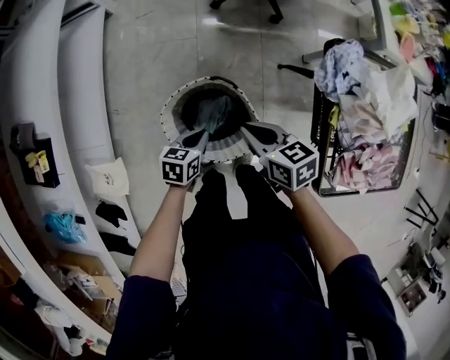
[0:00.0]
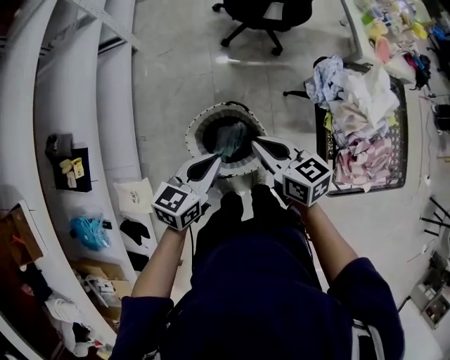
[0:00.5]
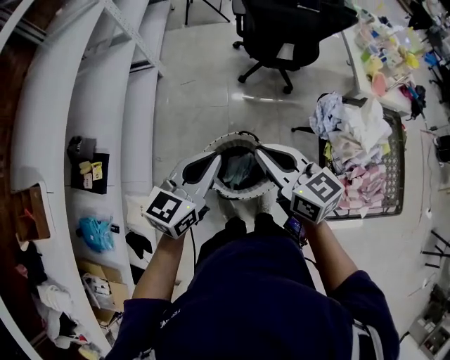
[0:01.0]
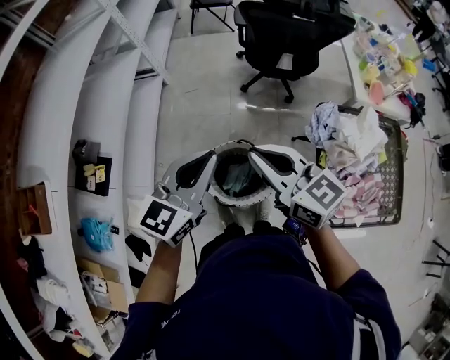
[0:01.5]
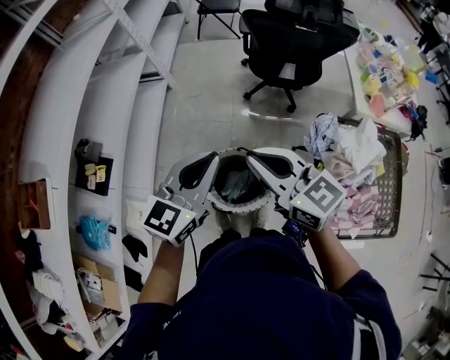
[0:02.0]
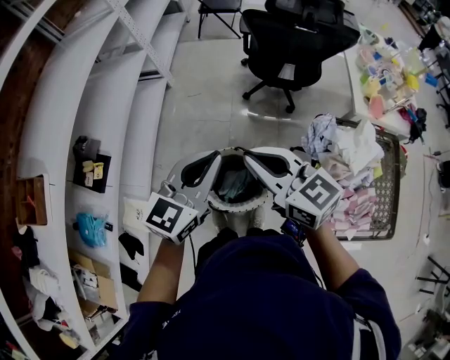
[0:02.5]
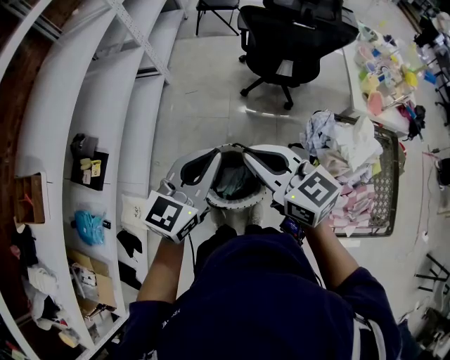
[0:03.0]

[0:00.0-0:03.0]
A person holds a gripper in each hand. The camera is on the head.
0:00.0 to 0:01.5: Both grippers travel together upward, some 40 cm. The right gripper tips its fingers upward by about 30 degrees; the left gripper angles its fingers upward, by approximately 40 degrees.
0:01.5 to 0:03.0: The grippers move only a little.

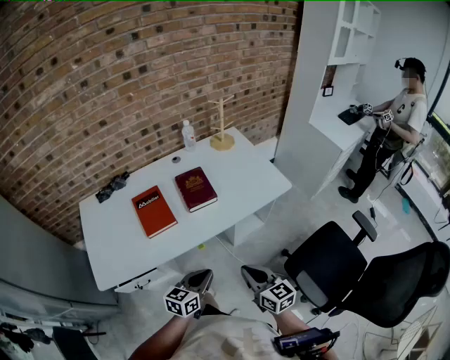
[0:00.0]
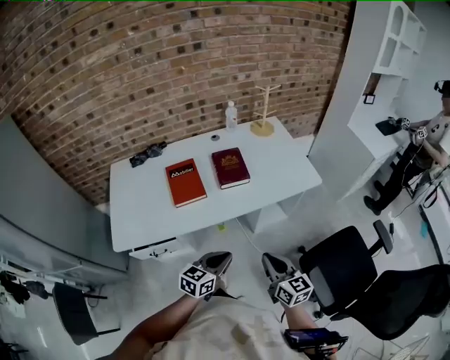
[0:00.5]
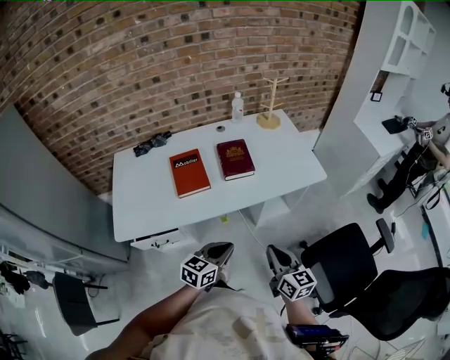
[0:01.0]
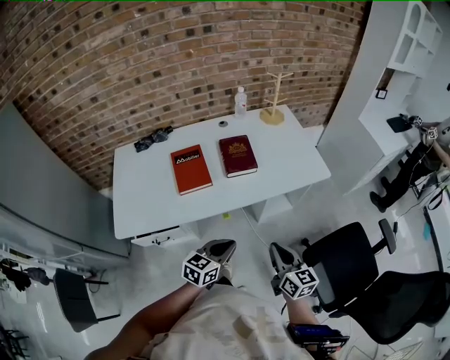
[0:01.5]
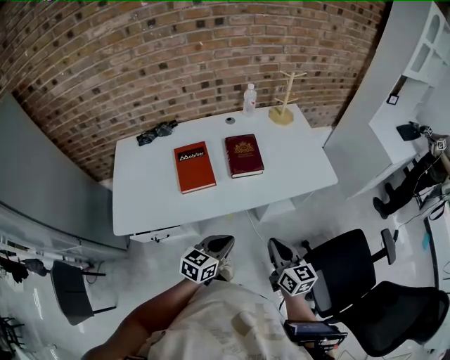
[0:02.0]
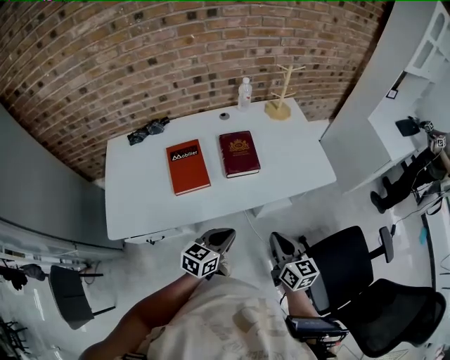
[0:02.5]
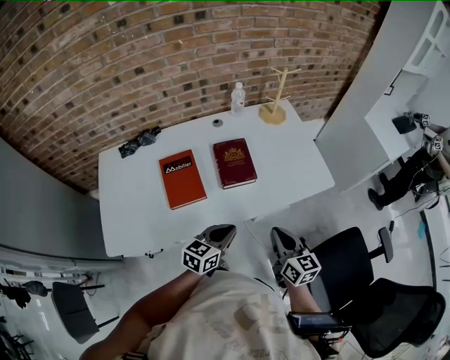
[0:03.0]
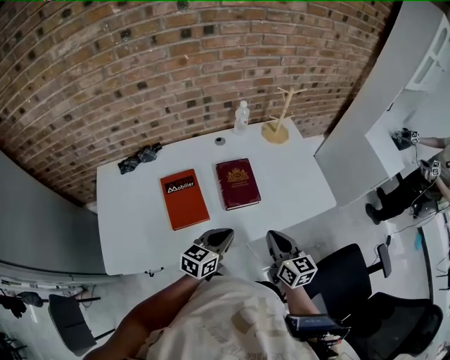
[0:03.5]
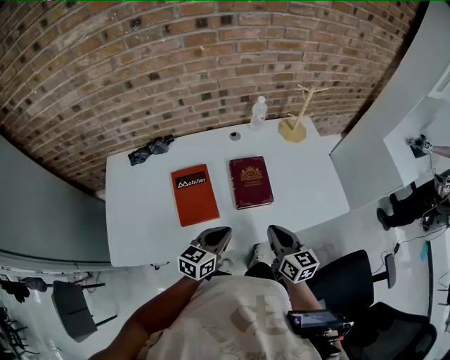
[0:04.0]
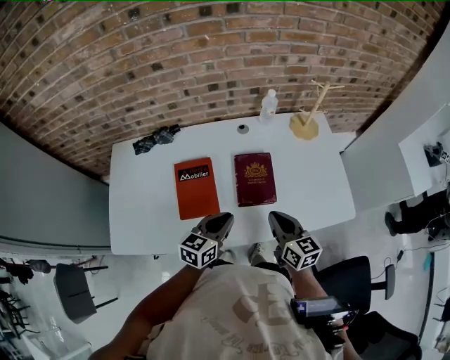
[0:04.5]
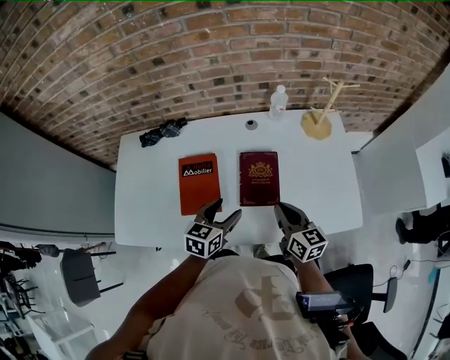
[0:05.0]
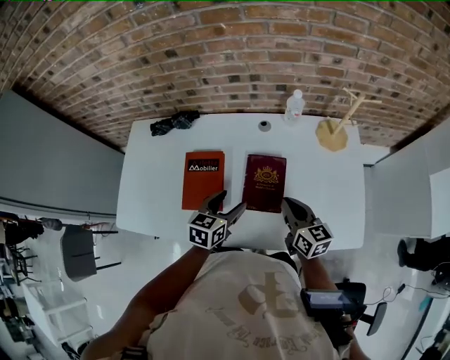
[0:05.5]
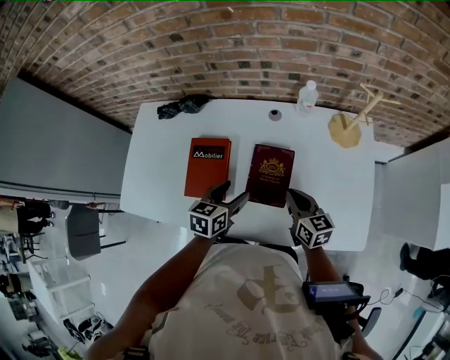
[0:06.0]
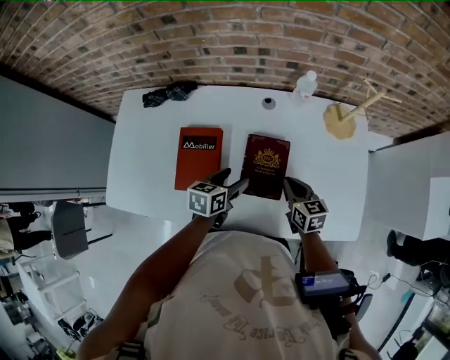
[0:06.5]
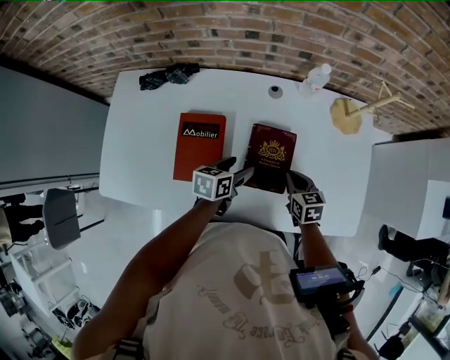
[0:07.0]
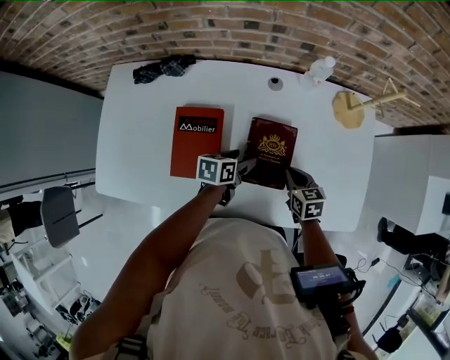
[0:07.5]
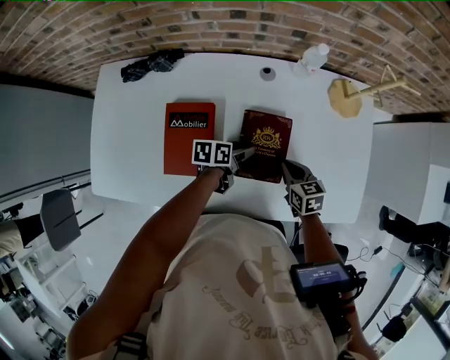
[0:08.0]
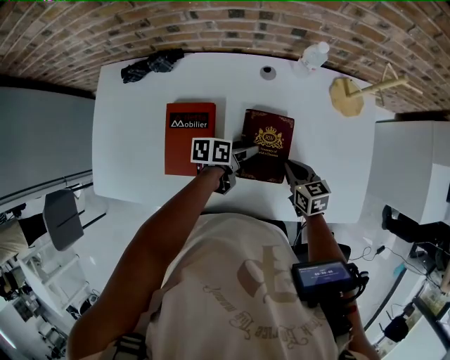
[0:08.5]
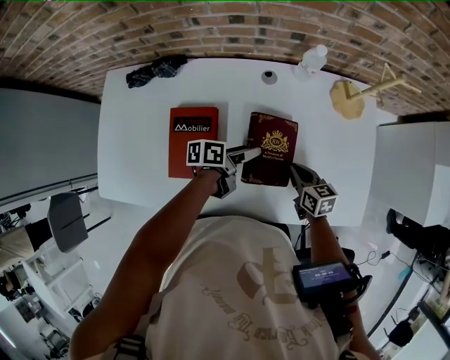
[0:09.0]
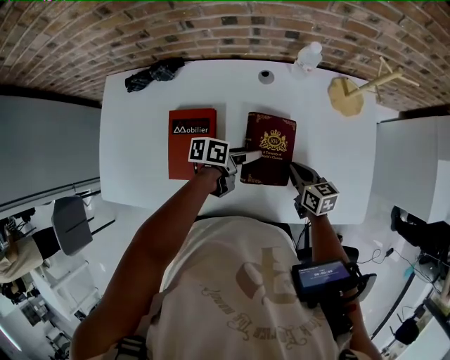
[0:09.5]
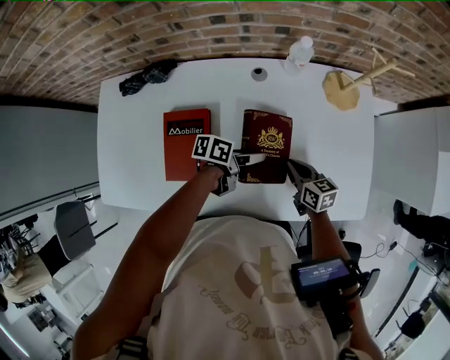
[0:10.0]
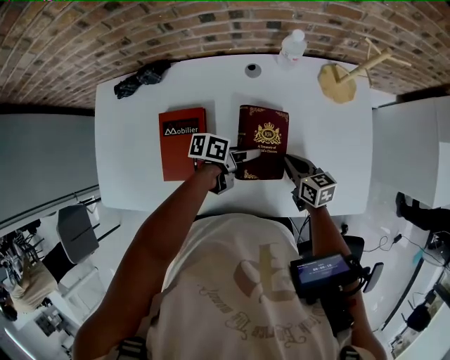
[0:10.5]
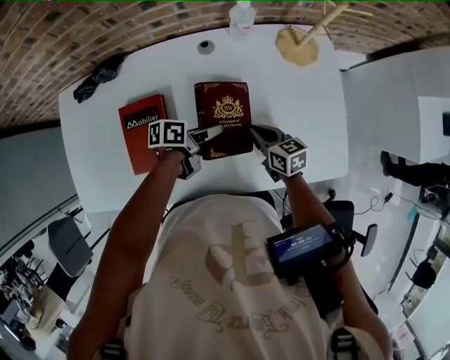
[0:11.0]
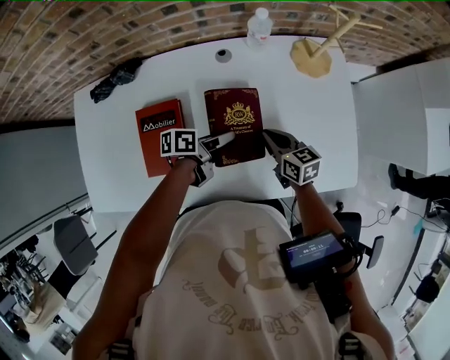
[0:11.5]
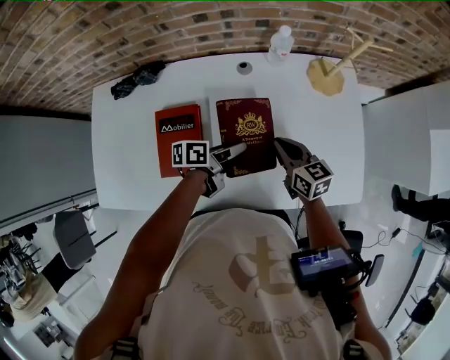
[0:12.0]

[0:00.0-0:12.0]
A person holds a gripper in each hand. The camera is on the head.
0:00.0 to 0:02.0: The grippers make only small movements.
0:02.0 to 0:04.0: Both grippers travel together forward, approximately 20 cm.
0:04.0 to 0:06.0: Both grippers move forward, roughly 15 cm. The right gripper turns by about 20 degrees. Meanwhile the left gripper changes its angle by roughly 30 degrees, and opens up.
0:06.0 to 0:08.0: The right gripper travels downward by some 10 cm, and swivels approximately 20 degrees; the left gripper heads downward and forward, covering some 15 cm, and rotates roughly 40 degrees.
0:08.0 to 0:10.0: The left gripper heads to the right, covering some 5 cm.
0:10.0 to 0:12.0: The right gripper goes about 10 cm upward.

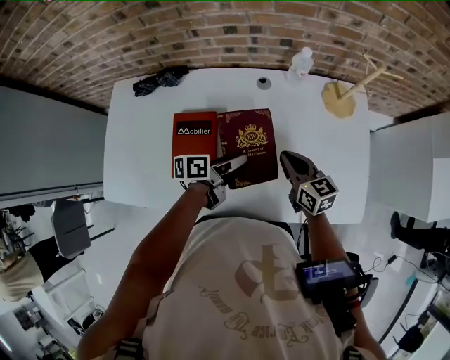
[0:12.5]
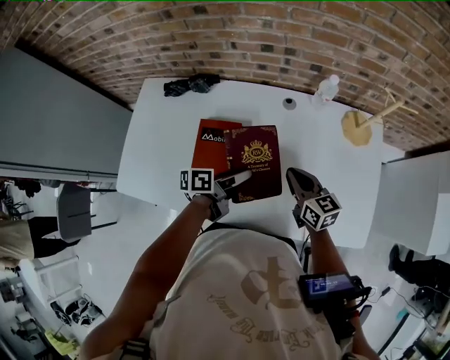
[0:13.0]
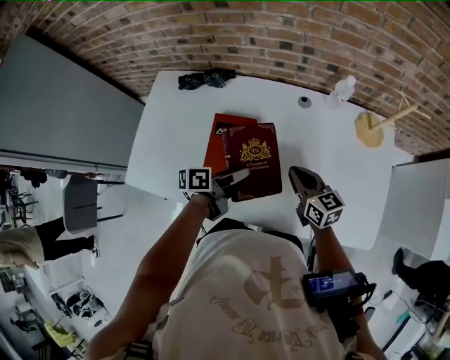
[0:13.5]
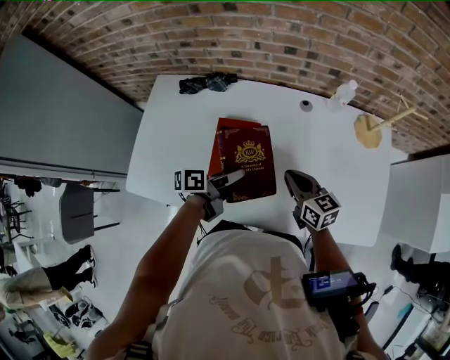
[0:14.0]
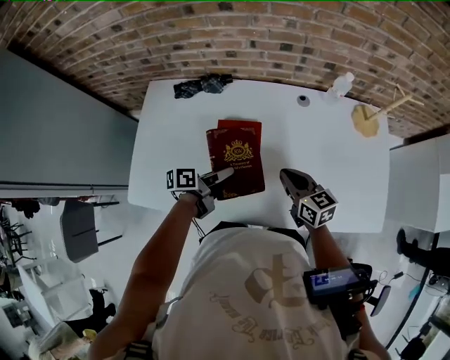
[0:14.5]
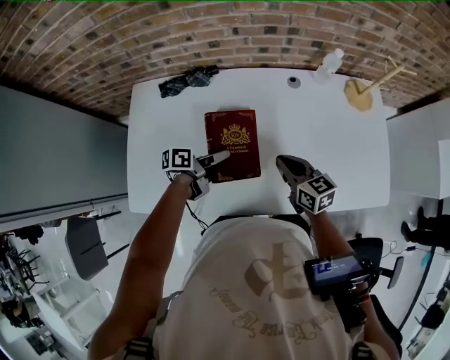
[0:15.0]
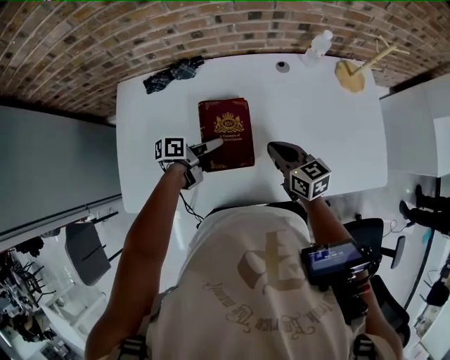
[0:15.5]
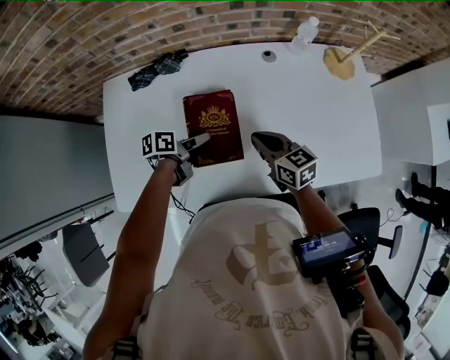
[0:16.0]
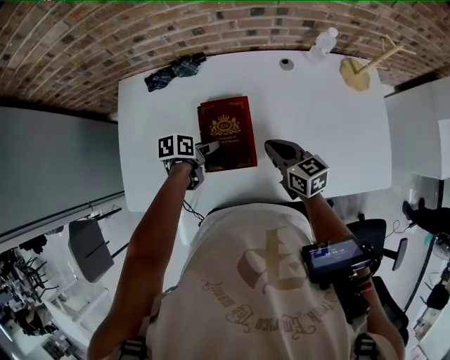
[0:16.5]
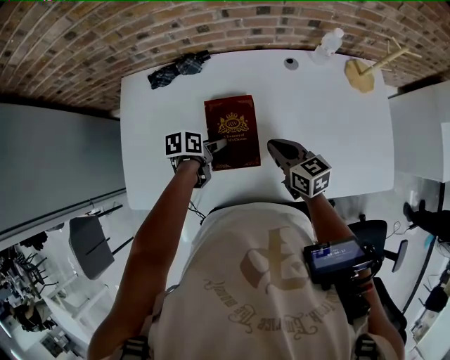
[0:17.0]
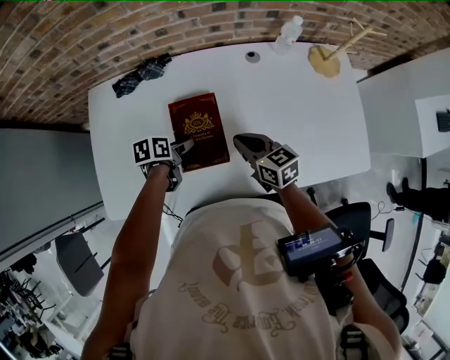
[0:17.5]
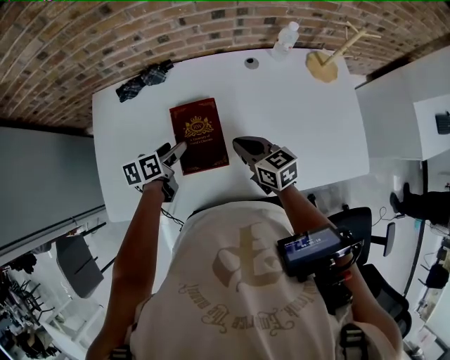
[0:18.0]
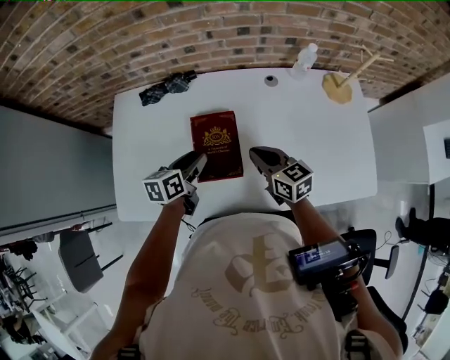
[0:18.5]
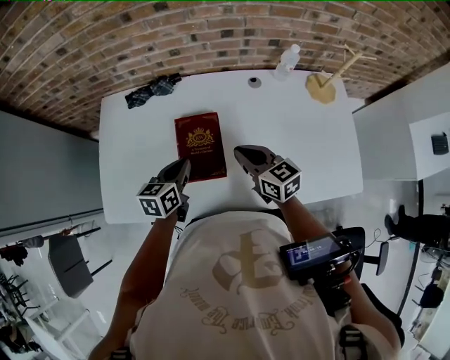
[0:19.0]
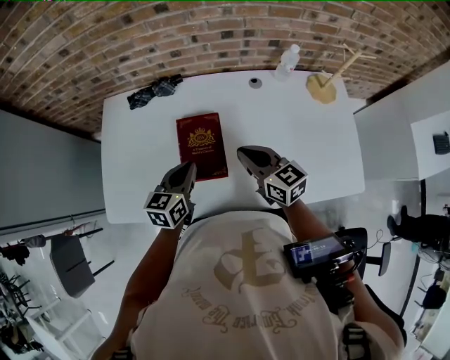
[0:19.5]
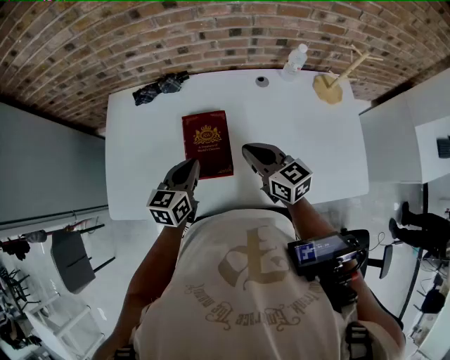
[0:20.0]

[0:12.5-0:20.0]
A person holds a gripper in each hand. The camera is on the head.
0:12.5 to 0:14.5: The grippers both shift to the left by approximately 20 cm.
0:14.5 to 0:16.5: The left gripper is displaced downward and to the left by some 10 cm, and turns by some 30 degrees.
0:16.5 to 0:18.0: The left gripper heads upward, covering about 5 cm.
0:18.0 to 0:20.0: The right gripper is displaced upward by approximately 5 cm. The left gripper heads upward and backward, covering approximately 10 cm, turns by about 30 degrees, and closes its fingers.

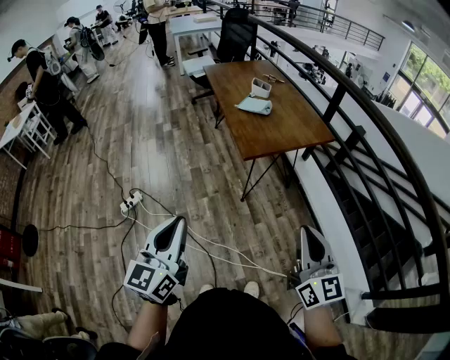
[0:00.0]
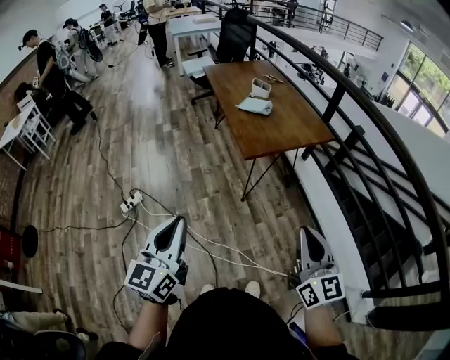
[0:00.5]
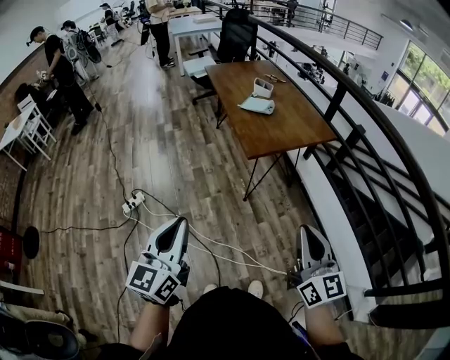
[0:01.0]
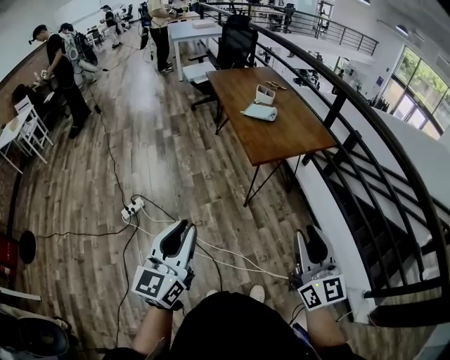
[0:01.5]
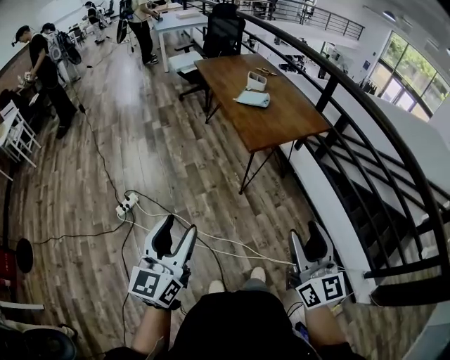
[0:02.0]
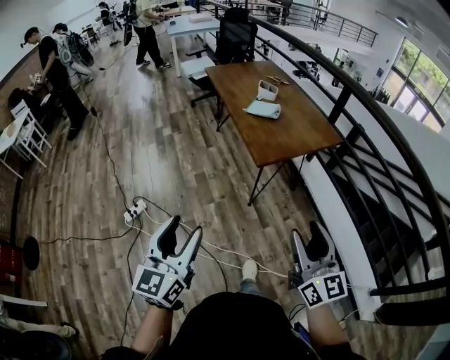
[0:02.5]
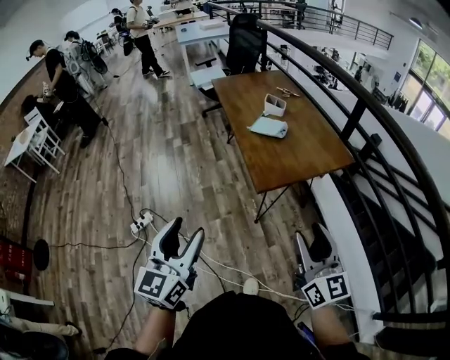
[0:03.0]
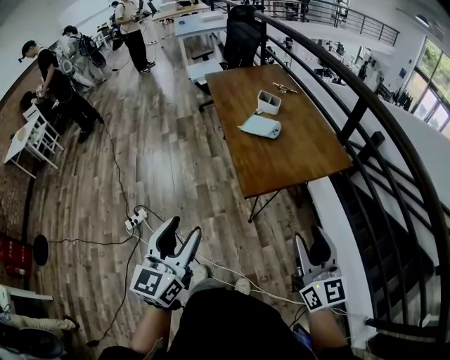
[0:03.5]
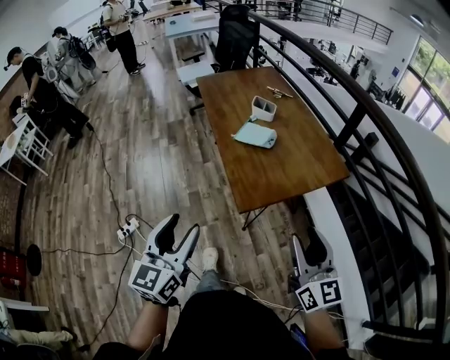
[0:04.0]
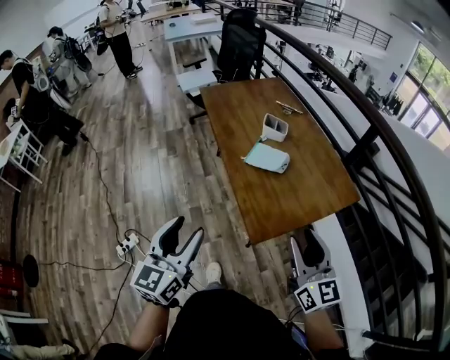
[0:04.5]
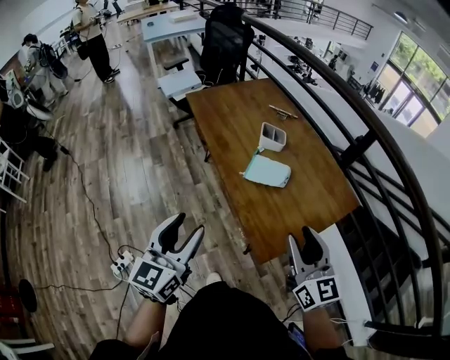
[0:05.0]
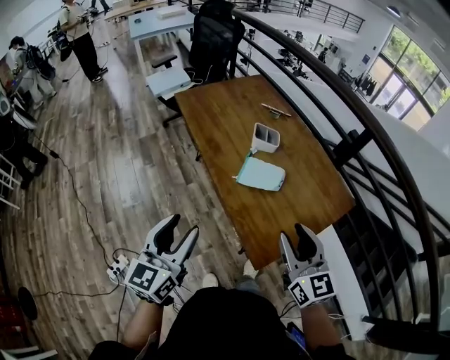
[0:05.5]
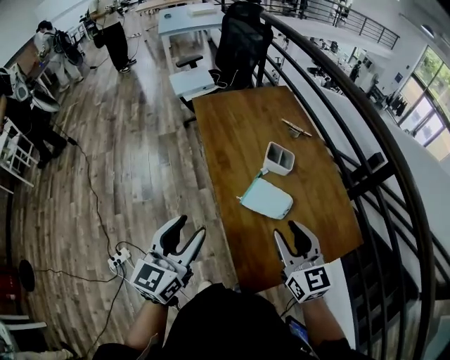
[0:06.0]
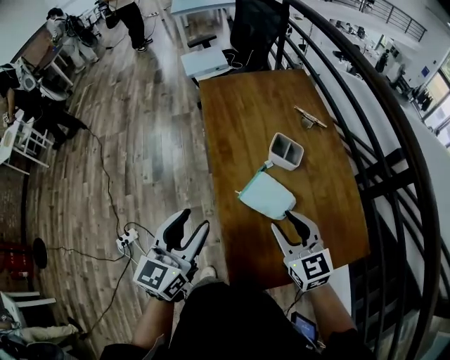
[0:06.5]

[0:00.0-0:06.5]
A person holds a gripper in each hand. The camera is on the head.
0:00.0 to 0:02.0: The two grippers go about 10 cm to the left. The right gripper opens up; the left gripper opens its fingers.
0:02.0 to 0:04.5: The pair of grippers is taken forward, about 40 cm.
0:04.5 to 0:06.5: Both grippers move forward, some 25 cm. The right gripper changes its angle by approximately 30 degrees.
